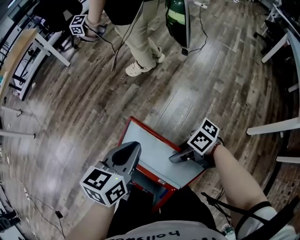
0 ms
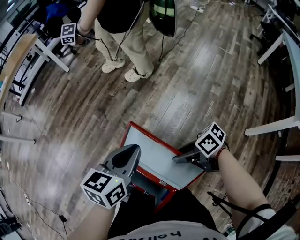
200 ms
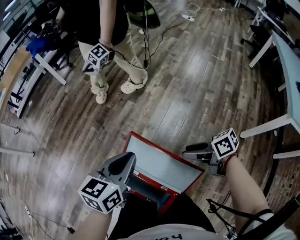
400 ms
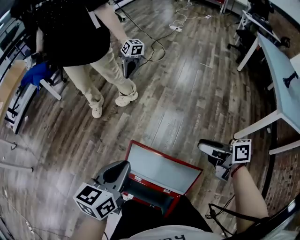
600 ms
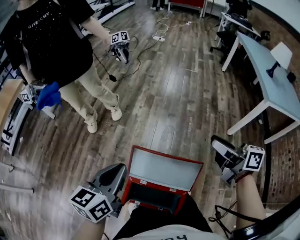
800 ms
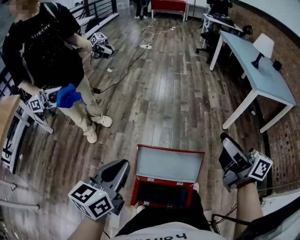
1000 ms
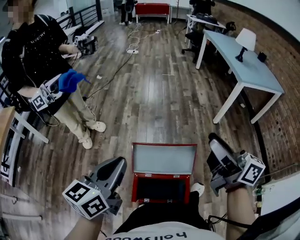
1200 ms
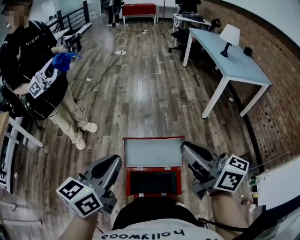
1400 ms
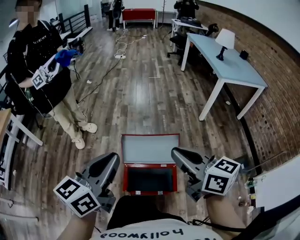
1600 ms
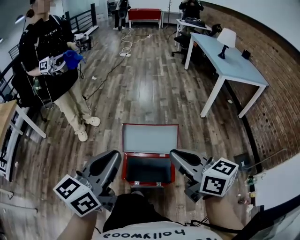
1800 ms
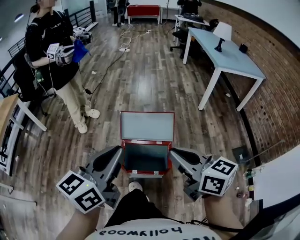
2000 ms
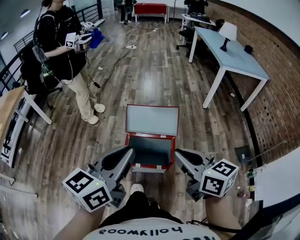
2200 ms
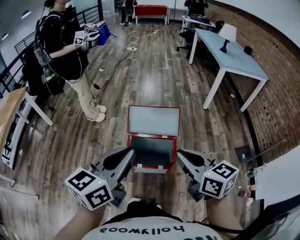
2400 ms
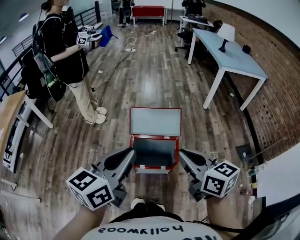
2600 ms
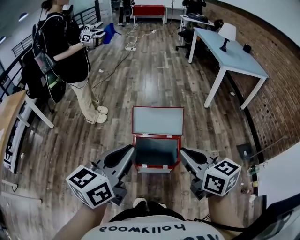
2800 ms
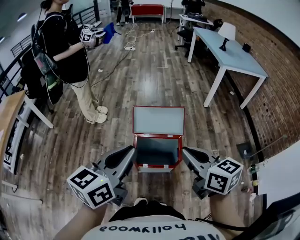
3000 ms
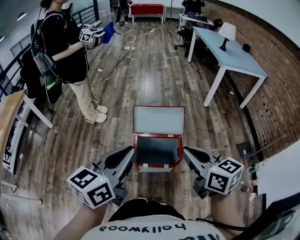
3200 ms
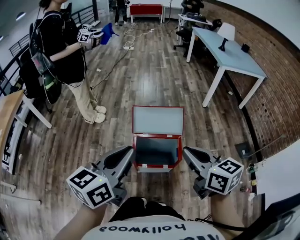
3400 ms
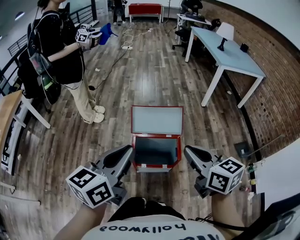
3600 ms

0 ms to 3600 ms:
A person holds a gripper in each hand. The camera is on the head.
0 ms to 1800 ms: The right gripper goes roughly 35 cm upward, swivels approximately 90 degrees, and closes up; the left gripper shifts by approximately 40 cm, and rotates some 40 degrees.
1800 ms to 3600 ms: The two grippers go roughly 10 cm backward.

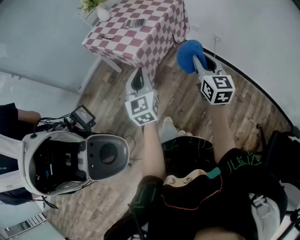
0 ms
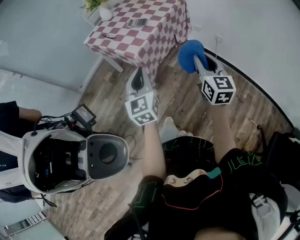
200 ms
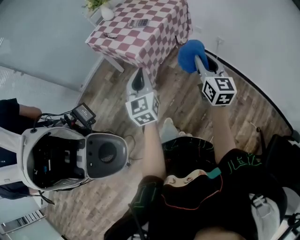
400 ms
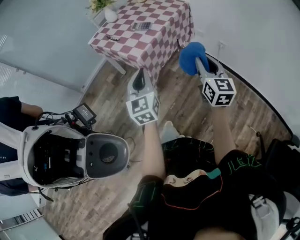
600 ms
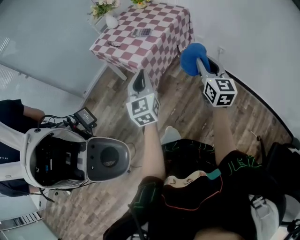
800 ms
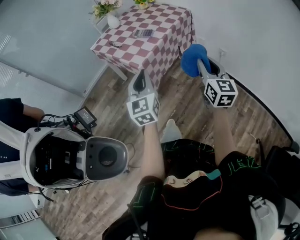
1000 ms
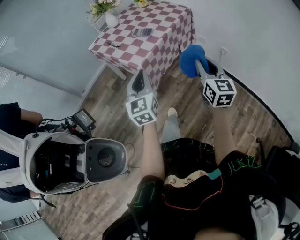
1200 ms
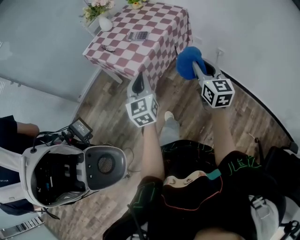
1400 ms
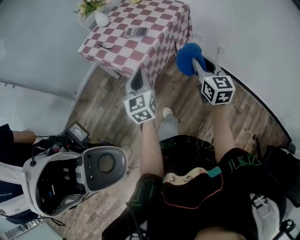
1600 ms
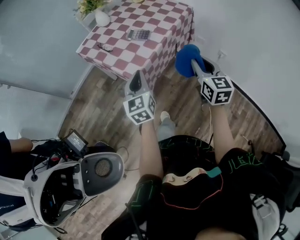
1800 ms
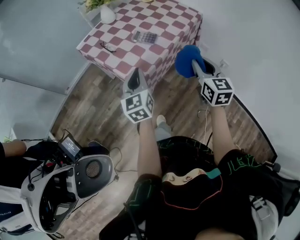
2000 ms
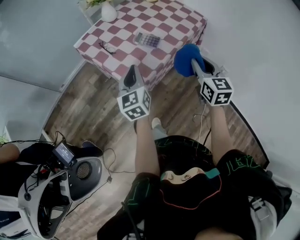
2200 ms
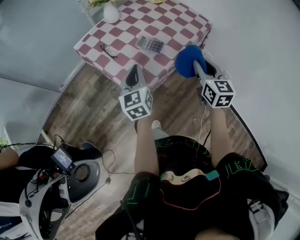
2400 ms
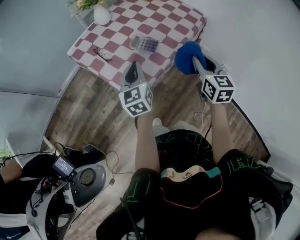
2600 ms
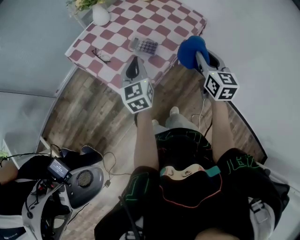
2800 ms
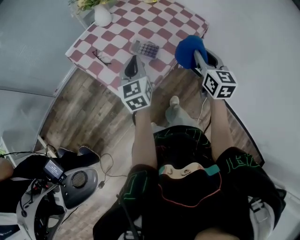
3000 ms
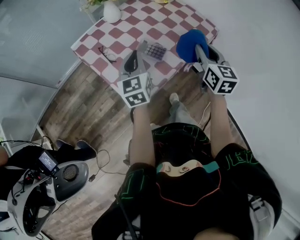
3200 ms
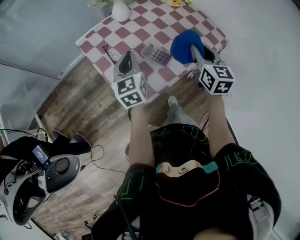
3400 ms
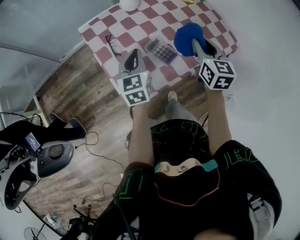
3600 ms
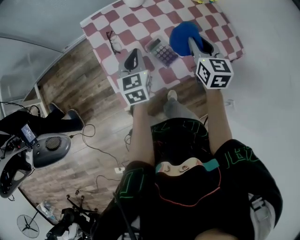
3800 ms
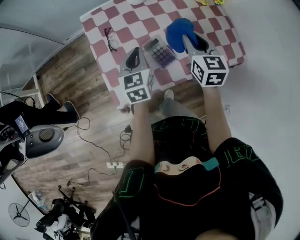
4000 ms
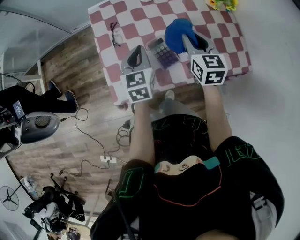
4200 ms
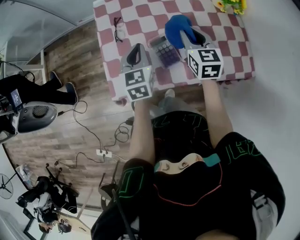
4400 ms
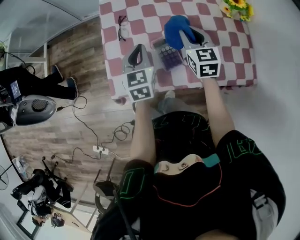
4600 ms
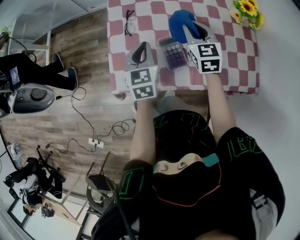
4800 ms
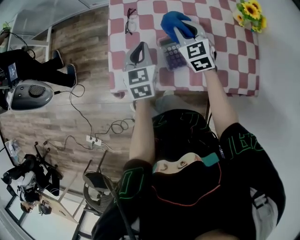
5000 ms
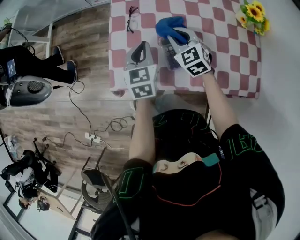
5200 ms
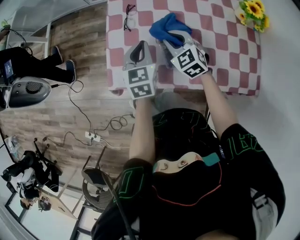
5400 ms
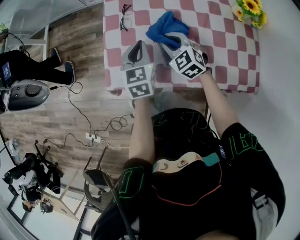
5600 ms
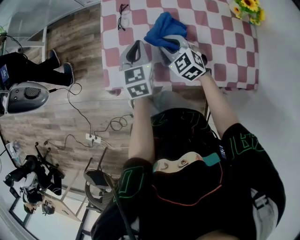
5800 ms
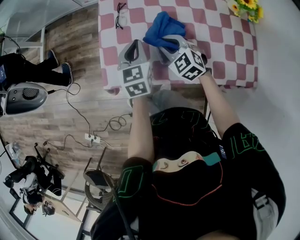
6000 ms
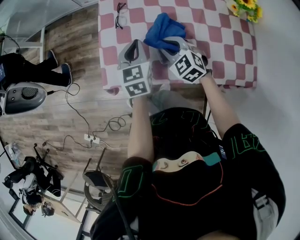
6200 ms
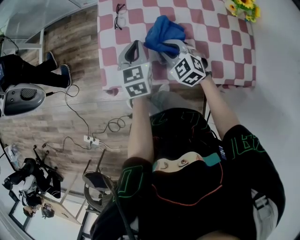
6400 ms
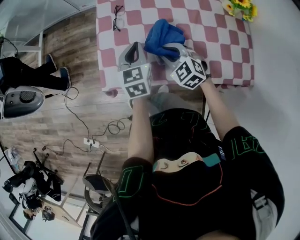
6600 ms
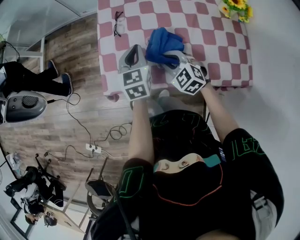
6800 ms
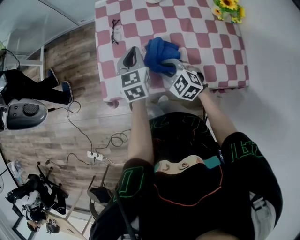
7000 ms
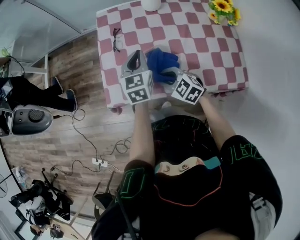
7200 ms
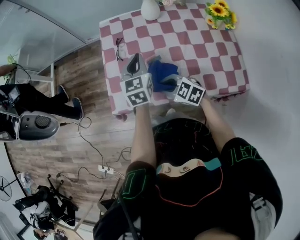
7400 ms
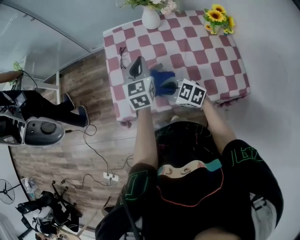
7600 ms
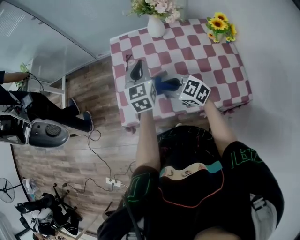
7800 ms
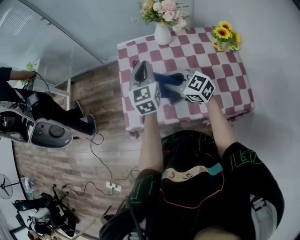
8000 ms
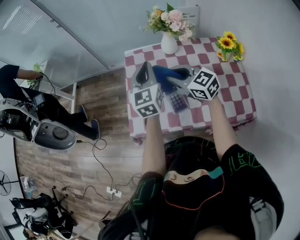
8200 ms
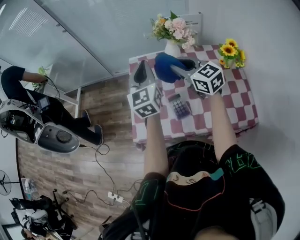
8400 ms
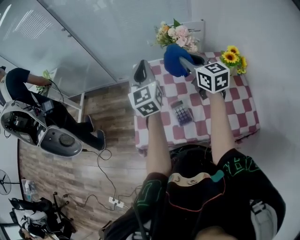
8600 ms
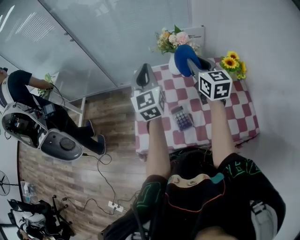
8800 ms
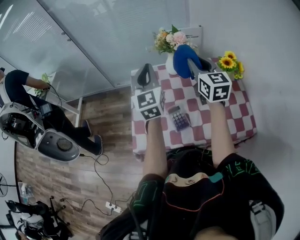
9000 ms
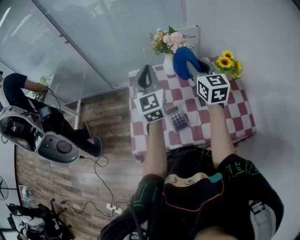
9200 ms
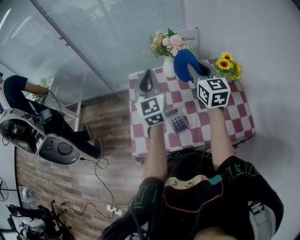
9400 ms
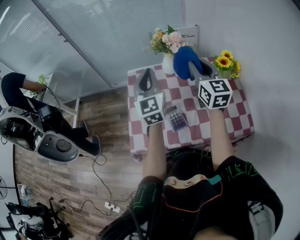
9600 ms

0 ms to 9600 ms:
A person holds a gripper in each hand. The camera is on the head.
0 ms to 1600 ms: The left gripper shifts about 15 cm forward and downward. The right gripper shifts about 15 cm forward.
1600 ms to 3200 ms: Both grippers travel together forward, about 30 cm.
3200 ms to 4800 ms: The left gripper travels downward by roughly 10 cm, and turns by about 40 degrees, while the right gripper changes place by some 30 cm, and swivels roughly 50 degrees.
4800 ms to 6400 ms: The right gripper shifts about 15 cm downward, to the left and backward, and turns by some 40 degrees.
6400 ms to 8000 ms: Both grippers move upward, some 15 cm. The right gripper turns by approximately 30 degrees.
8000 ms to 9600 ms: The right gripper is displaced upward, to the right and forward by approximately 25 cm, and changes its angle by about 50 degrees. Meanwhile the left gripper travels upward by some 10 cm.

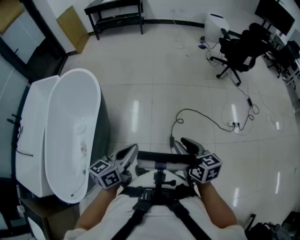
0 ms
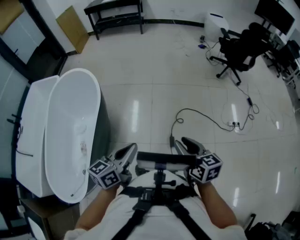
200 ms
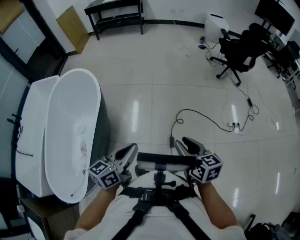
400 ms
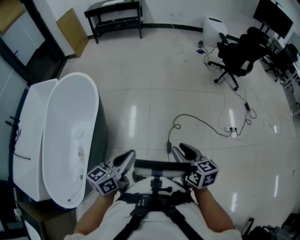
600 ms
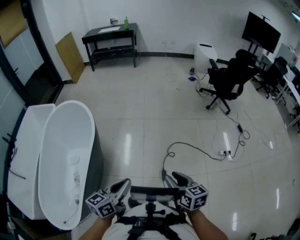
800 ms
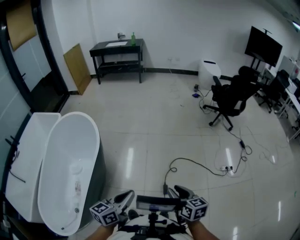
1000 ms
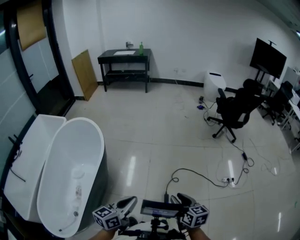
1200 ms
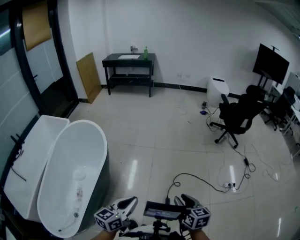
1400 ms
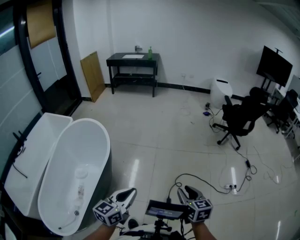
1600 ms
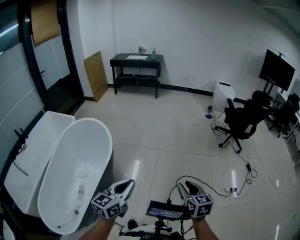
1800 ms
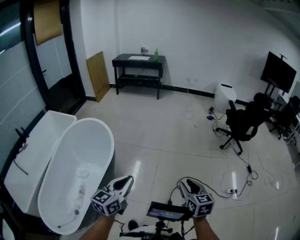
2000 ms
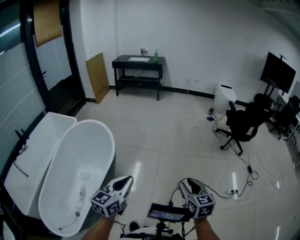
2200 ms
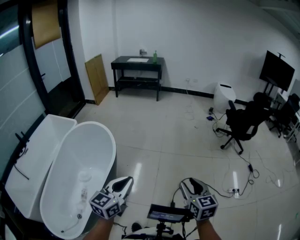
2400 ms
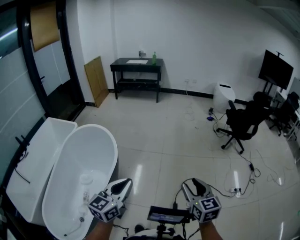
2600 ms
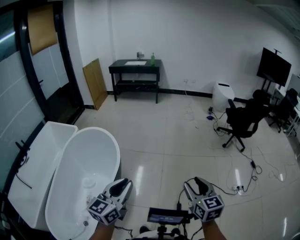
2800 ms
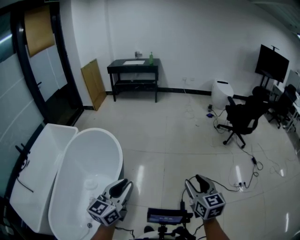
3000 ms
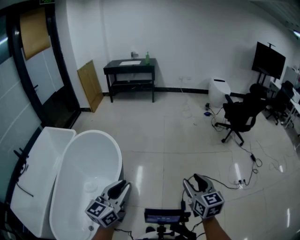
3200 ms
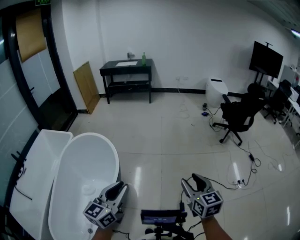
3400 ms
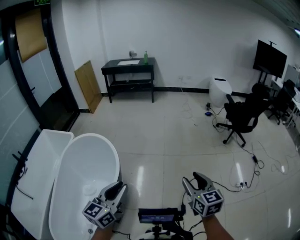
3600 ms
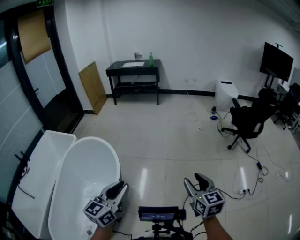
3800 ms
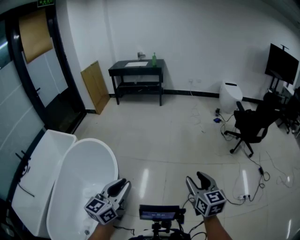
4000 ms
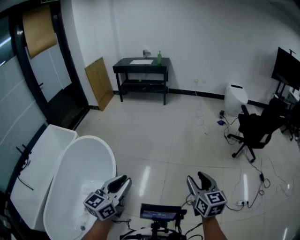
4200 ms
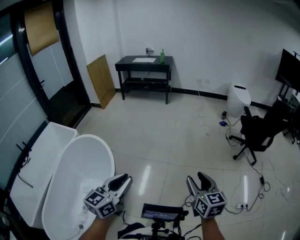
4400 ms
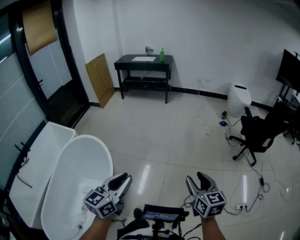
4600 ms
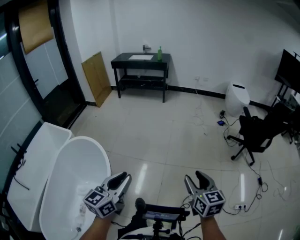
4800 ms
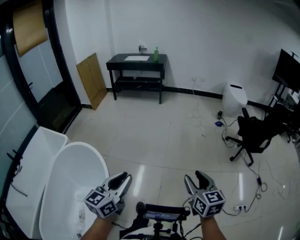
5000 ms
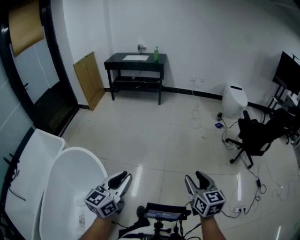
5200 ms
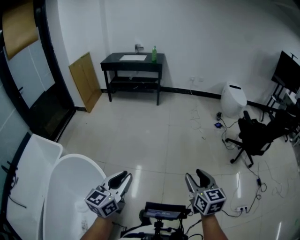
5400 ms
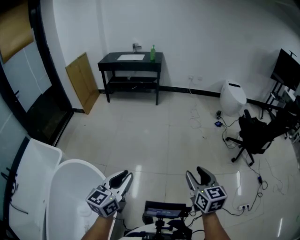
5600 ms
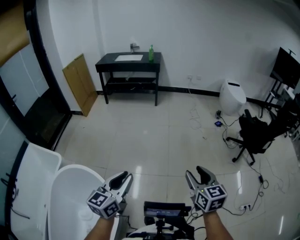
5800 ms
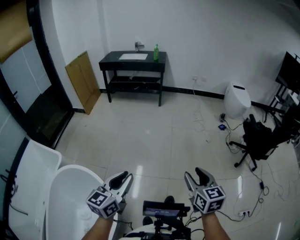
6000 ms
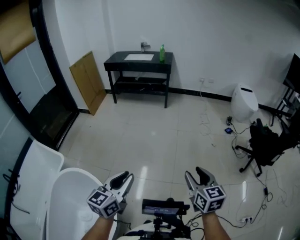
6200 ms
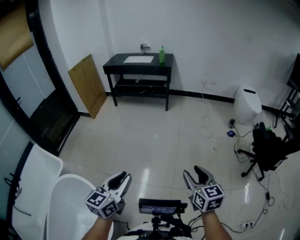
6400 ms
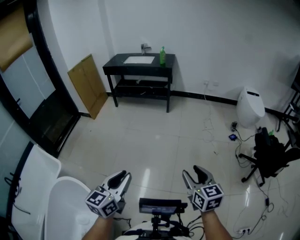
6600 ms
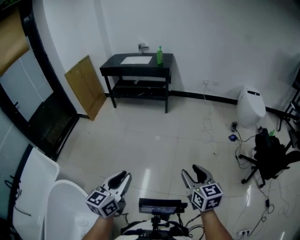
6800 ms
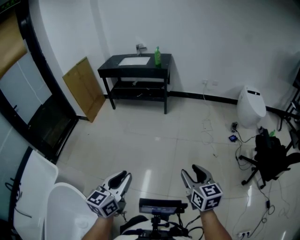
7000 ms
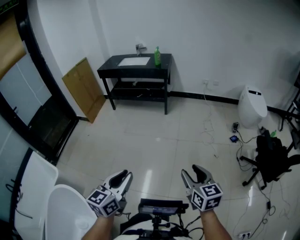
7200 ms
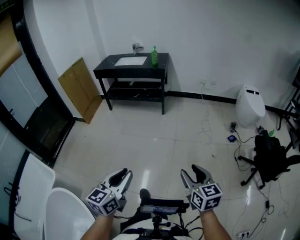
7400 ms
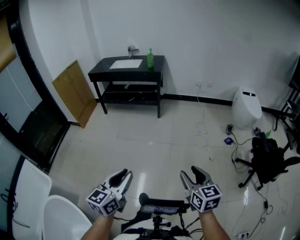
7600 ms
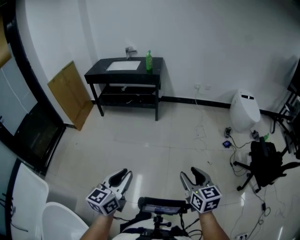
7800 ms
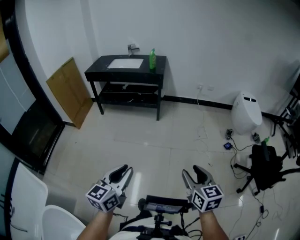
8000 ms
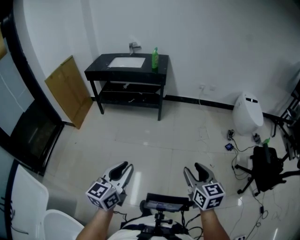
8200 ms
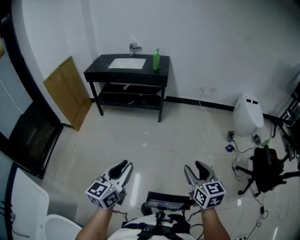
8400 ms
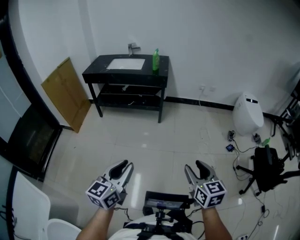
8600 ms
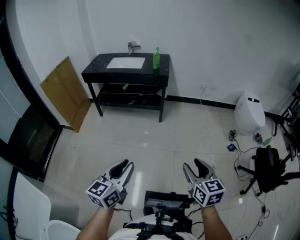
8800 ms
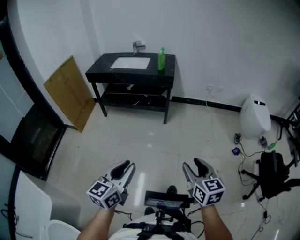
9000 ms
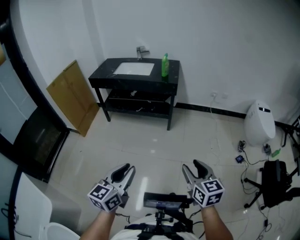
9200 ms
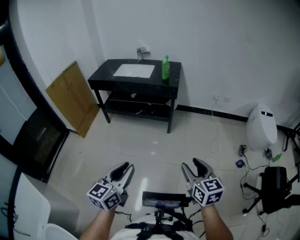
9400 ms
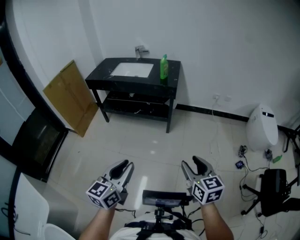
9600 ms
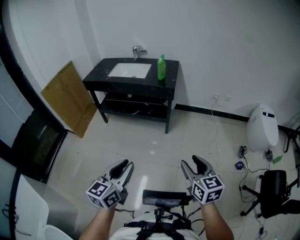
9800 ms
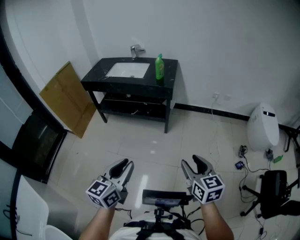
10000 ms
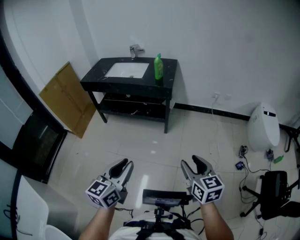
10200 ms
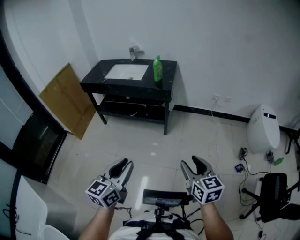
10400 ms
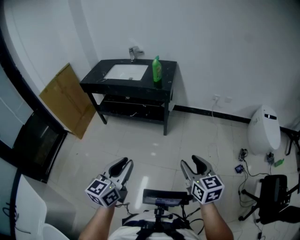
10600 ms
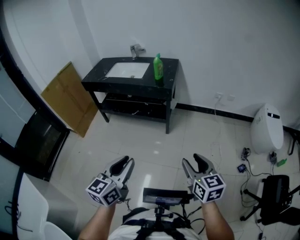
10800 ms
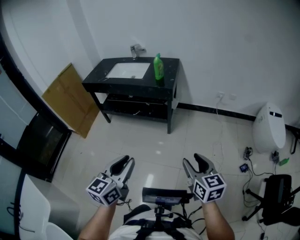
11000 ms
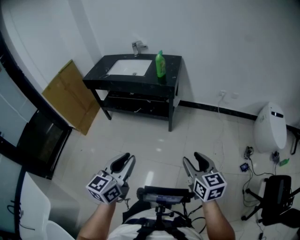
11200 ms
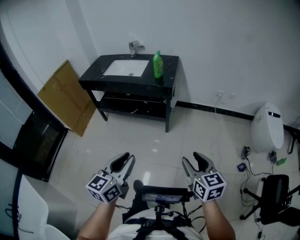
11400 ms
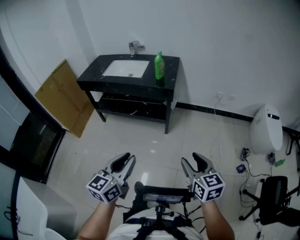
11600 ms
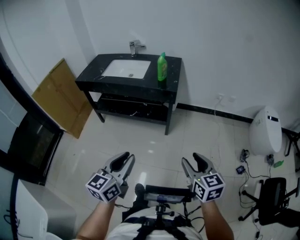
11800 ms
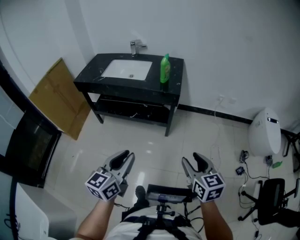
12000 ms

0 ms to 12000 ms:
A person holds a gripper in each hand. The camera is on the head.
0 ms to 1600 ms: Both grippers travel together forward, about 5 cm.
1600 ms to 3000 ms: Both grippers travel together to the left and upward, approximately 15 cm.
3000 ms to 4400 ms: Both grippers move forward, roughly 25 cm.
4400 ms to 6000 ms: The grippers both shift forward and to the left by about 35 cm.
6000 ms to 7600 ms: Both grippers move forward, roughly 30 cm.
7600 ms to 9000 ms: The grippers both shift forward and to the left by approximately 30 cm.
9000 ms to 10400 ms: Both grippers move forward and to the right, about 20 cm.
10400 ms to 12000 ms: The grippers both shift forward and to the left by roughly 15 cm.
